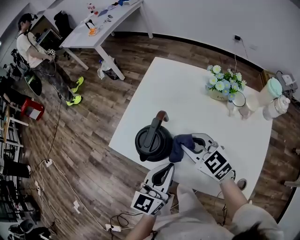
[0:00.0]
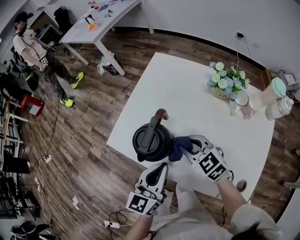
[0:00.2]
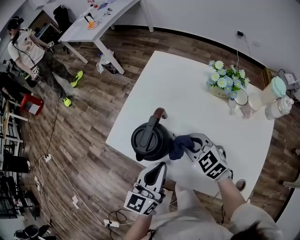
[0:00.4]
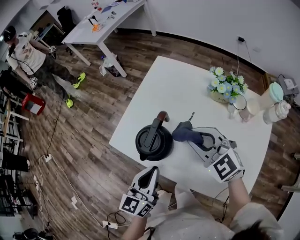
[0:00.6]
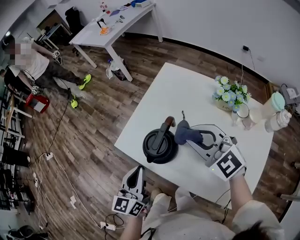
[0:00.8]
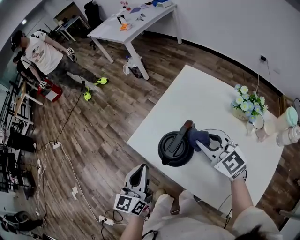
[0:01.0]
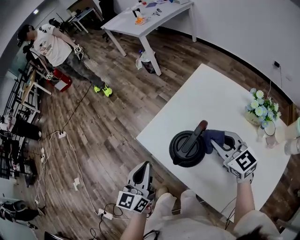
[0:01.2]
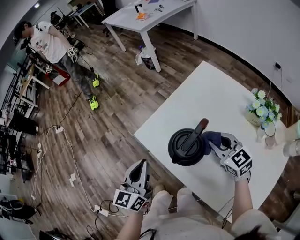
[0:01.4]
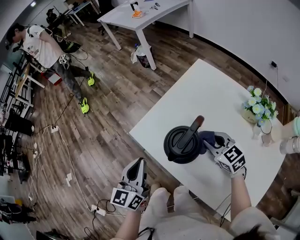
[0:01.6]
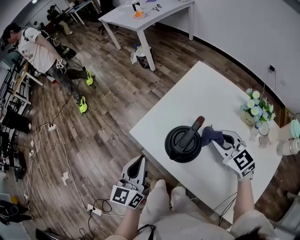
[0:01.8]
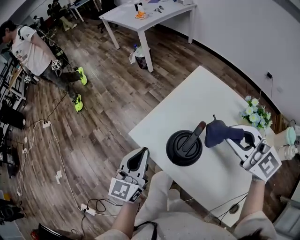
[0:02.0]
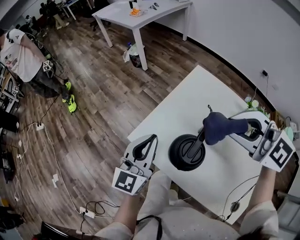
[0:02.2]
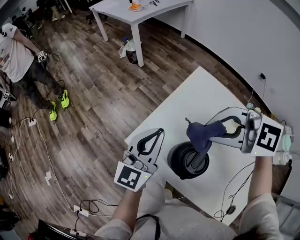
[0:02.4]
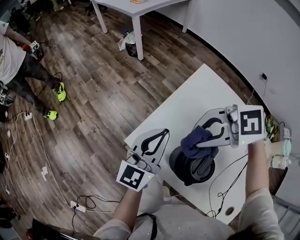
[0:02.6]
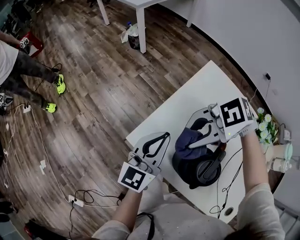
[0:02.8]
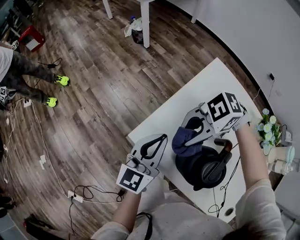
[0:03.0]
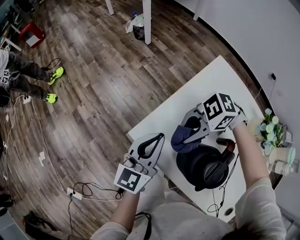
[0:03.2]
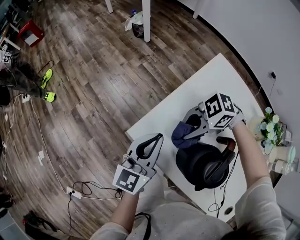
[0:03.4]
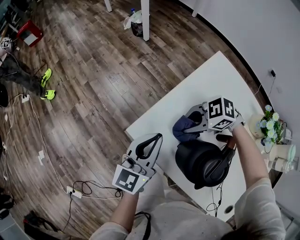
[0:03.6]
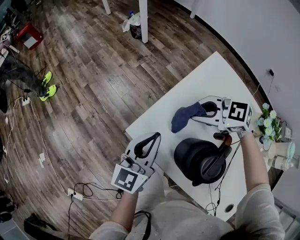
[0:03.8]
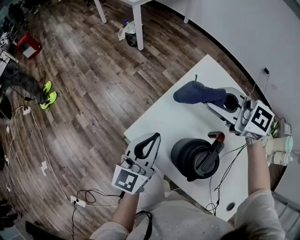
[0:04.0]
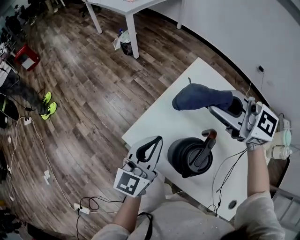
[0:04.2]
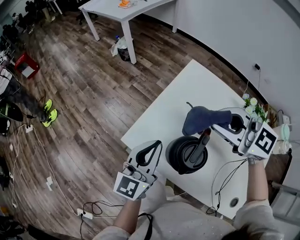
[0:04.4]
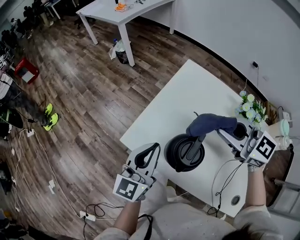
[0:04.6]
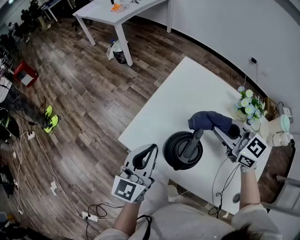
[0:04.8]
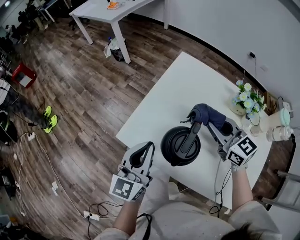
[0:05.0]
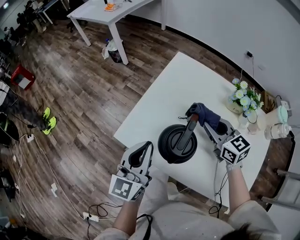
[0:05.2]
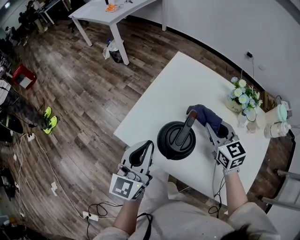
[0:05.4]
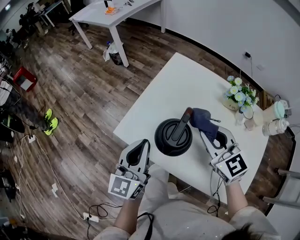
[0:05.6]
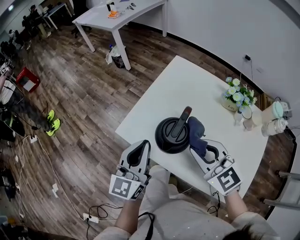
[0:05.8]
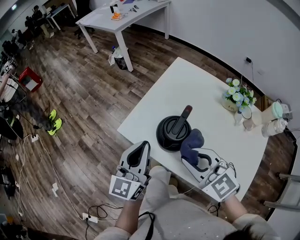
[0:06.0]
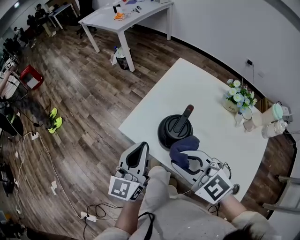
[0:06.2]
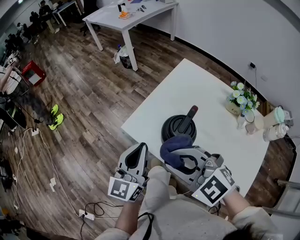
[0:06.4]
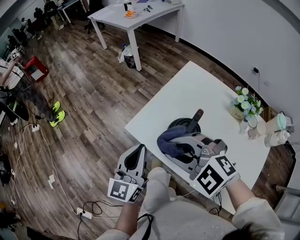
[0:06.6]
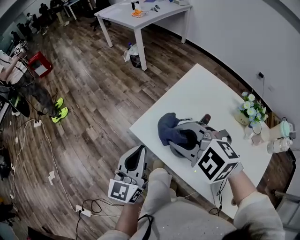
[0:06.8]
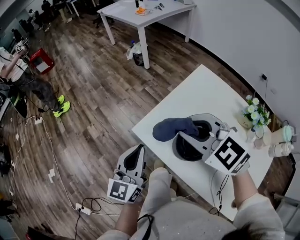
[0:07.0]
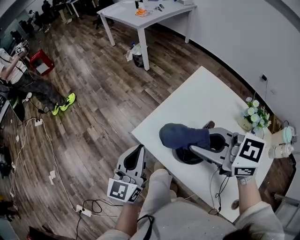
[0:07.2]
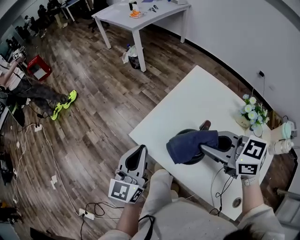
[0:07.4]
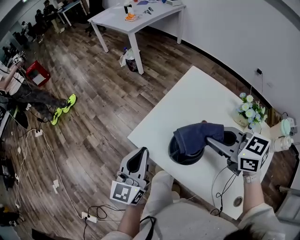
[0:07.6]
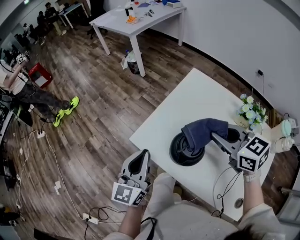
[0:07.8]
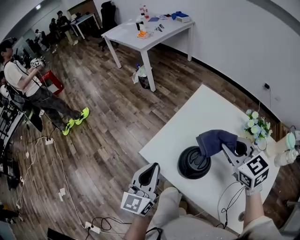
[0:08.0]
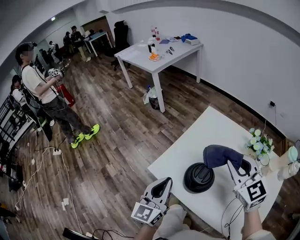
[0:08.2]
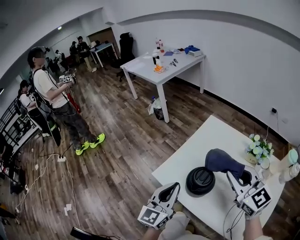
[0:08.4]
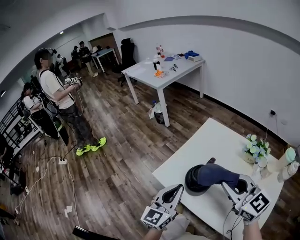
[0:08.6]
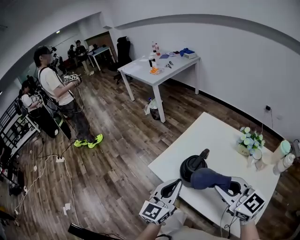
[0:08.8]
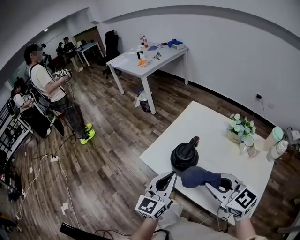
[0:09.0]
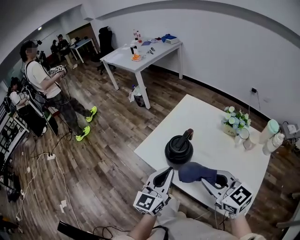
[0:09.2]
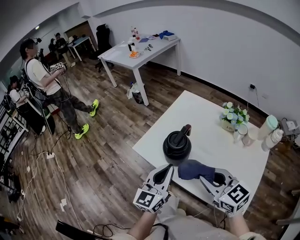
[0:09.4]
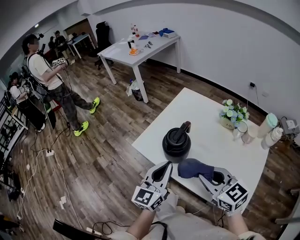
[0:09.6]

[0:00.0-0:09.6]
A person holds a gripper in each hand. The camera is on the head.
0:00.0 to 0:01.6: The right gripper swings up and down, some 15 cm each way, with 2 reversals. The left gripper is displaced to the left by some 20 cm, and swivels approximately 30 degrees.
0:01.6 to 0:03.2: The right gripper goes upward and returns, some 25 cm each way, and turns by approximately 80 degrees. The left gripper travels upward and back again, some 10 cm each way.
0:03.2 to 0:04.8: The right gripper moves up and down over some 25 cm, changing direction 2 times, and rotates approximately 90 degrees. The left gripper changes place by roughly 10 cm.
0:04.8 to 0:06.4: The left gripper travels backward by approximately 5 cm; the right gripper is displaced to the left and backward by some 25 cm, and turns by about 40 degrees.
0:06.4 to 0:08.0: The right gripper is displaced to the right and forward by roughly 20 cm, and changes its angle by approximately 40 degrees.
0:08.0 to 0:09.6: The right gripper goes roughly 25 cm backward. Meanwhile the left gripper moves backward and to the right, roughly 15 cm.

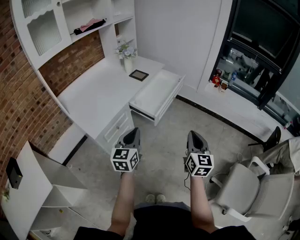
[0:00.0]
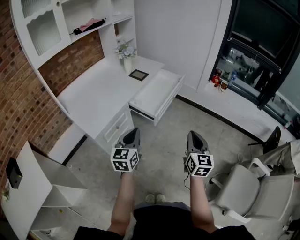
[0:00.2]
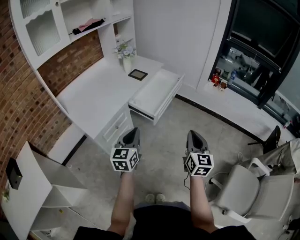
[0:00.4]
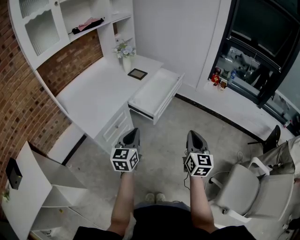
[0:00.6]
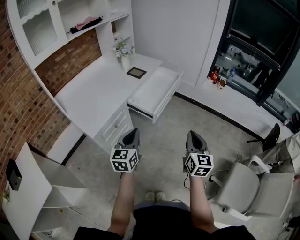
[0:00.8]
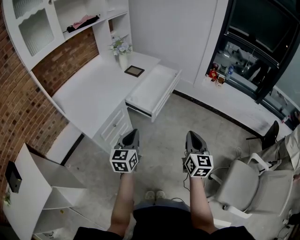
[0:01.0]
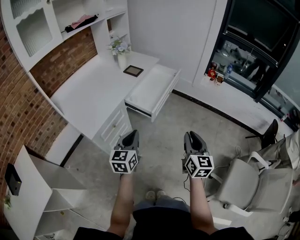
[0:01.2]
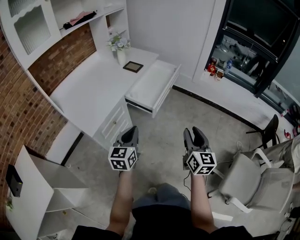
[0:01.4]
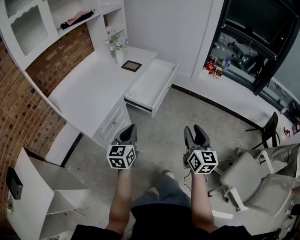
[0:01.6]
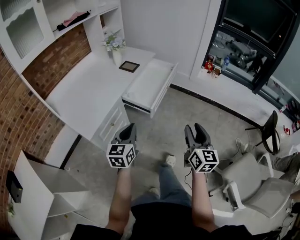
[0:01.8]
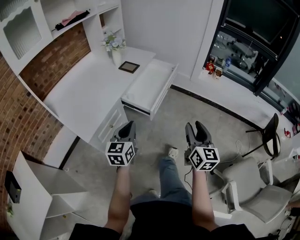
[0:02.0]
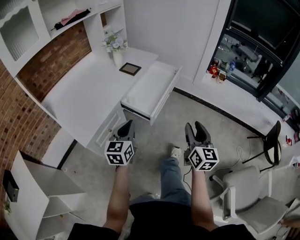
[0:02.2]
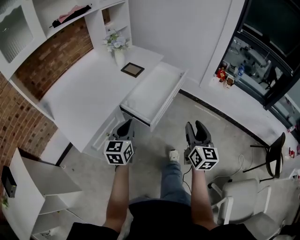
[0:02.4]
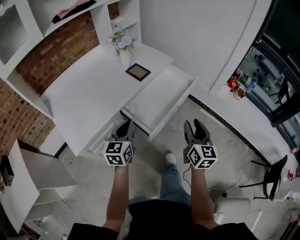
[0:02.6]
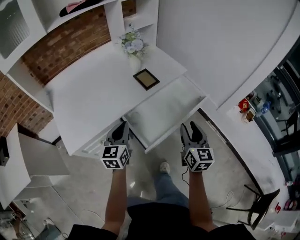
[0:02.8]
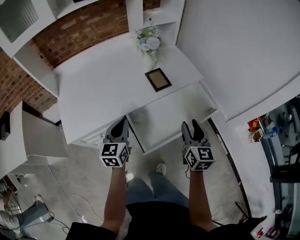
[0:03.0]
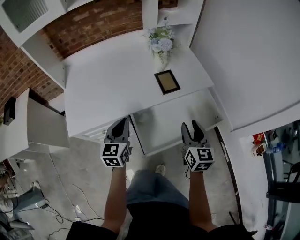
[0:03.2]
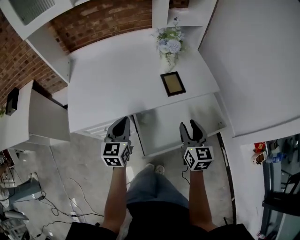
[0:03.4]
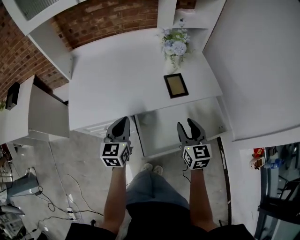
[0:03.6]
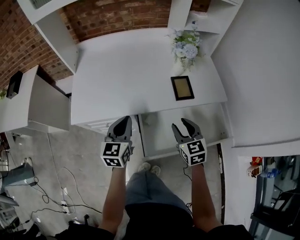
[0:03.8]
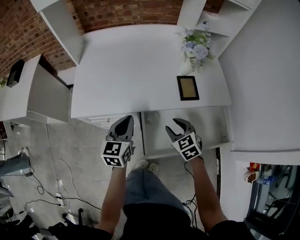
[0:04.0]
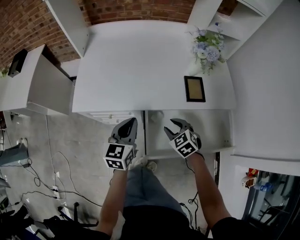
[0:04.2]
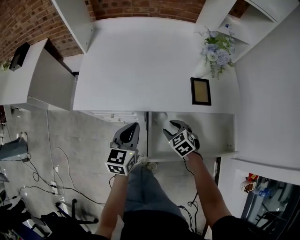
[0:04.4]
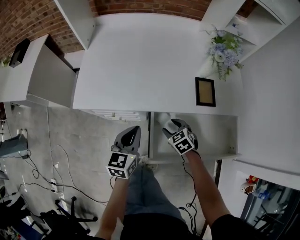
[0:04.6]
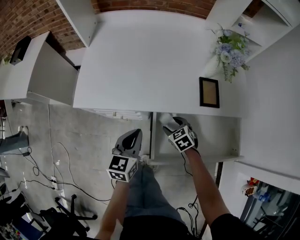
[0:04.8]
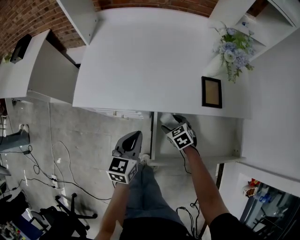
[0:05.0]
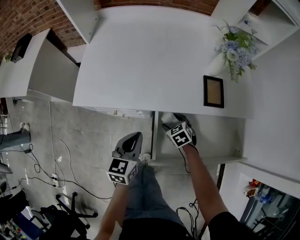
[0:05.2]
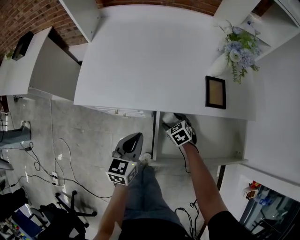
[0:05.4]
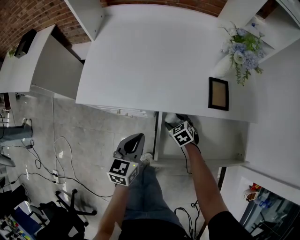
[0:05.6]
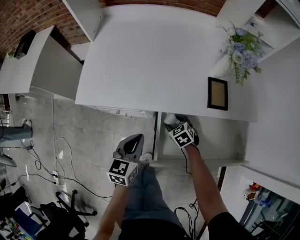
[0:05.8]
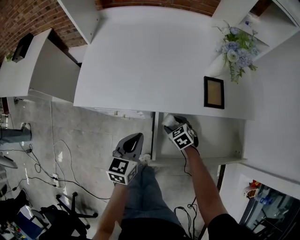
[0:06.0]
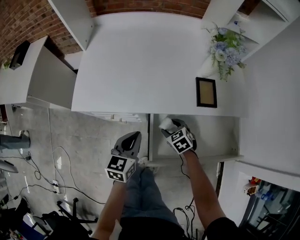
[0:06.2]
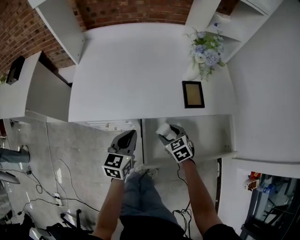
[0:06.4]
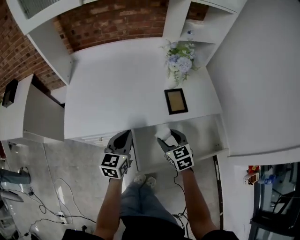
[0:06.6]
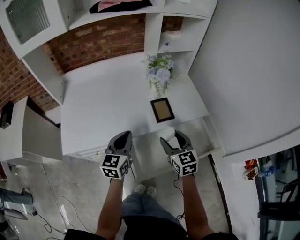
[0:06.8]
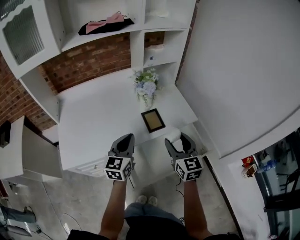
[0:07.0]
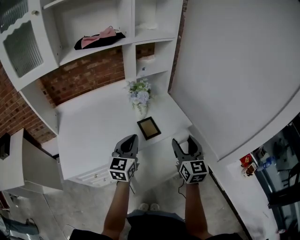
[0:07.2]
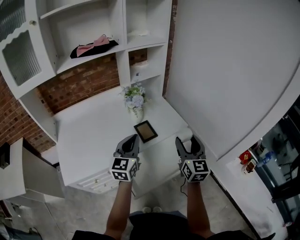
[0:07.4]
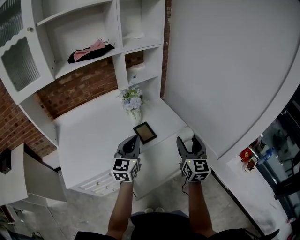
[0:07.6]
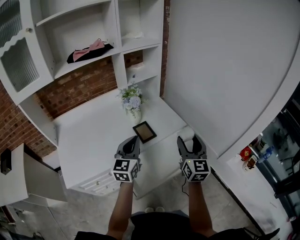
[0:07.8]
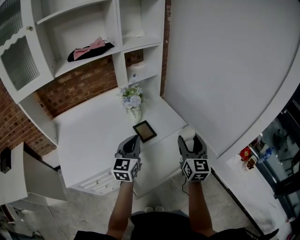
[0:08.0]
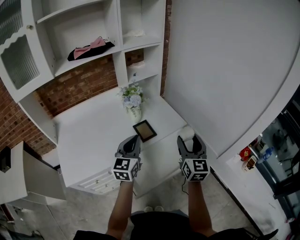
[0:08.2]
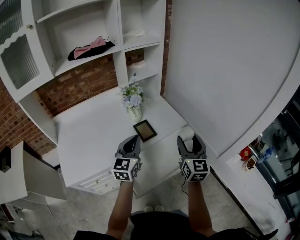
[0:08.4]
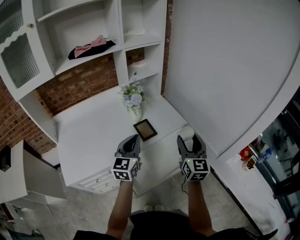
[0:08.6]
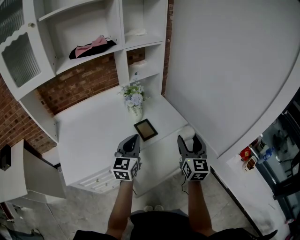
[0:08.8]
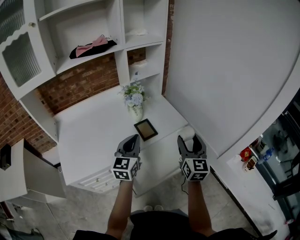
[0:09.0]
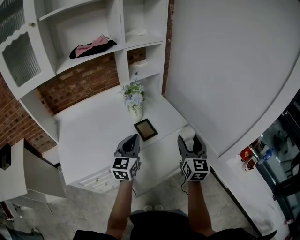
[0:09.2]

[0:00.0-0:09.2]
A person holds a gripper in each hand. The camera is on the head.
0:00.0 to 0:01.6: The right gripper opens its fingers.
0:01.6 to 0:03.0: The right gripper moves some 50 cm, and changes its angle by approximately 40 degrees, while the left gripper moves about 35 cm, and rotates some 40 degrees.
0:03.0 to 0:04.6: The left gripper shifts some 5 cm downward, and swivels roughly 20 degrees, while the right gripper goes approximately 25 cm downward, and angles its fingers downward, by approximately 40 degrees.
0:06.2 to 0:07.6: The right gripper is displaced upward by roughly 40 cm, and points its fingers about 60 degrees further upward, while the left gripper heads upward, covering approximately 25 cm, and swivels some 40 degrees.
0:07.6 to 0:09.2: Neither gripper changes place.

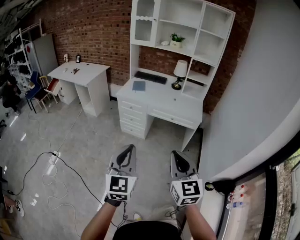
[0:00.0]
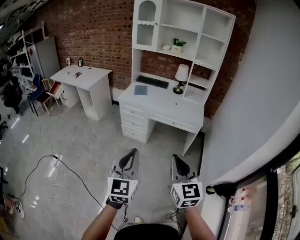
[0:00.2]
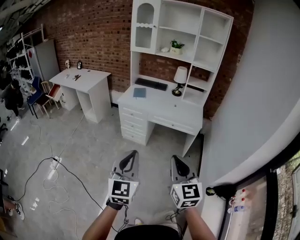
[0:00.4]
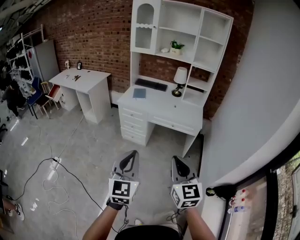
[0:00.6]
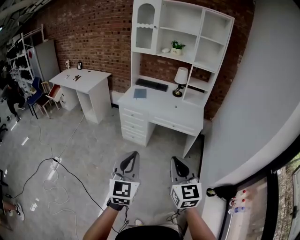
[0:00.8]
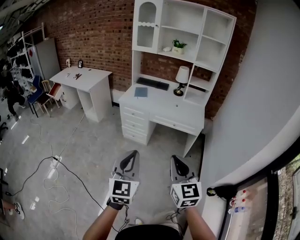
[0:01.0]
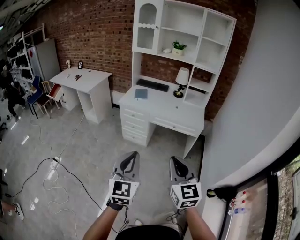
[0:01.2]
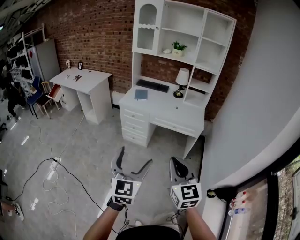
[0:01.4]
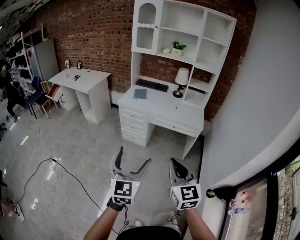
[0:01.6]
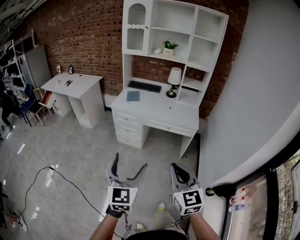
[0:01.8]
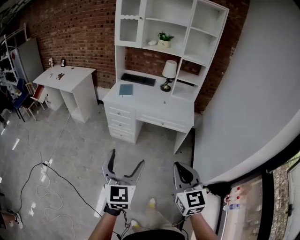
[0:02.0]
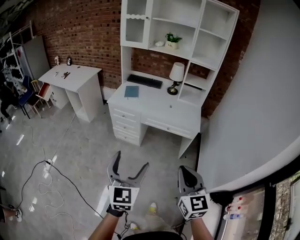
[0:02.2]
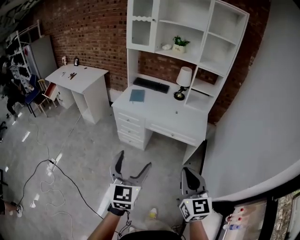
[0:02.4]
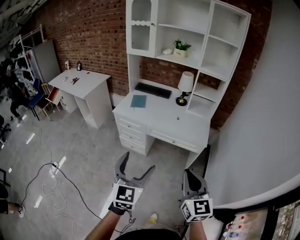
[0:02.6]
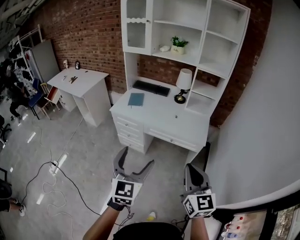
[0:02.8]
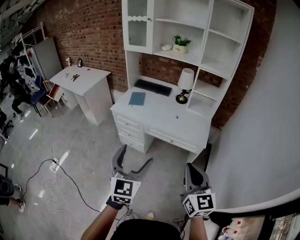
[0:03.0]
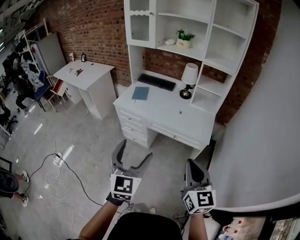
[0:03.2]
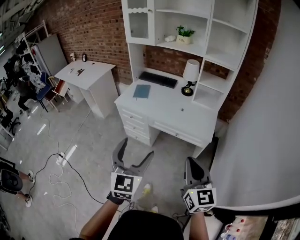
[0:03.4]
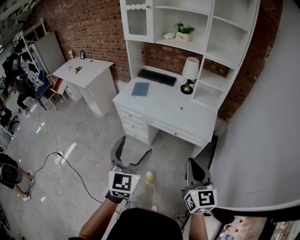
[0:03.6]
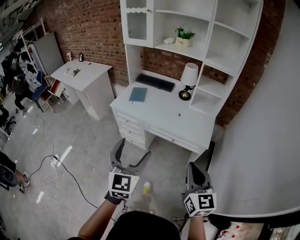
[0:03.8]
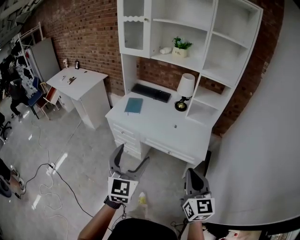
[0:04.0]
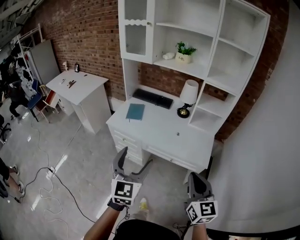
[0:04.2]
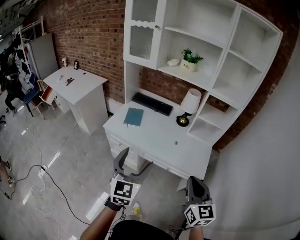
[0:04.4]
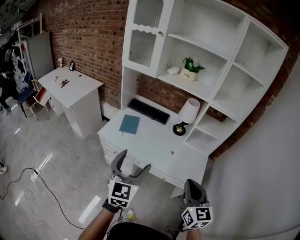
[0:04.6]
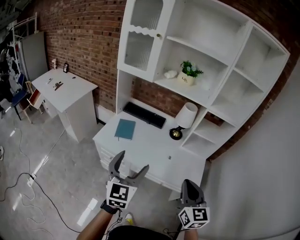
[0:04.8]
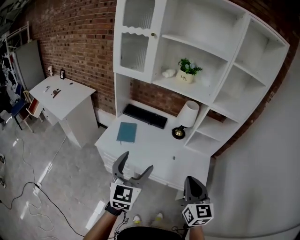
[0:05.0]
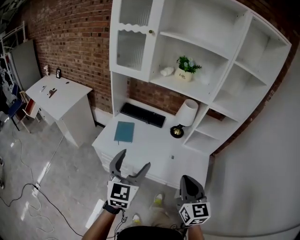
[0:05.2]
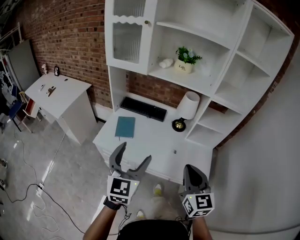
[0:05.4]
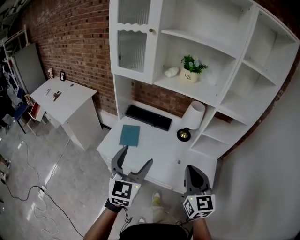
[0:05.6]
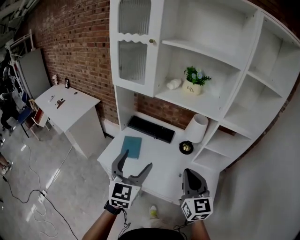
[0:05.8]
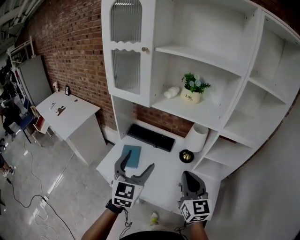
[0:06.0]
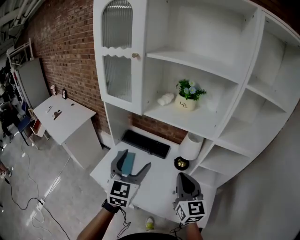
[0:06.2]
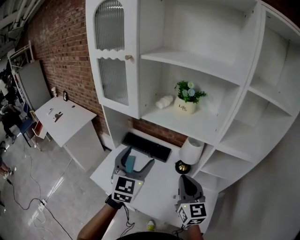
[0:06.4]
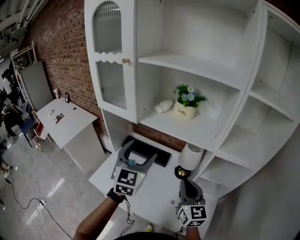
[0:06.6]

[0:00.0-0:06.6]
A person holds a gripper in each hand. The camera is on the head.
0:00.0 to 0:01.6: The left gripper opens up.
0:01.6 to 0:03.2: Both grippers travel together forward and to the right, about 35 cm.
0:03.2 to 0:05.0: The grippers both shift forward by approximately 35 cm.
0:05.0 to 0:06.6: The grippers both shift forward by approximately 35 cm.
